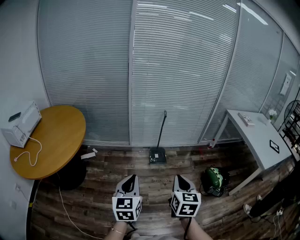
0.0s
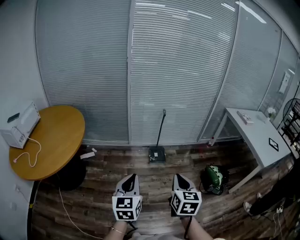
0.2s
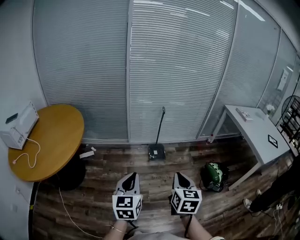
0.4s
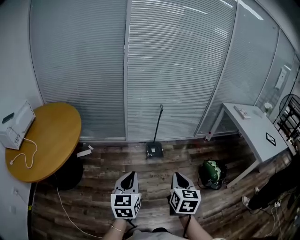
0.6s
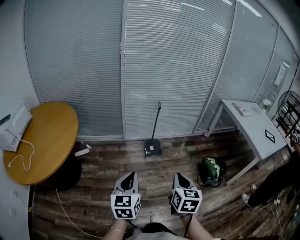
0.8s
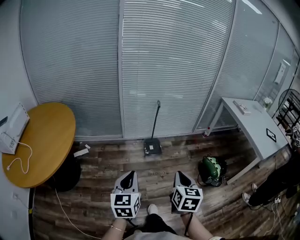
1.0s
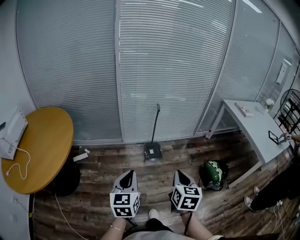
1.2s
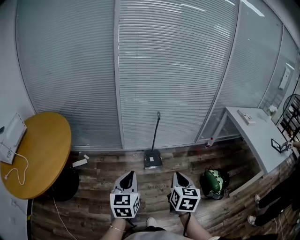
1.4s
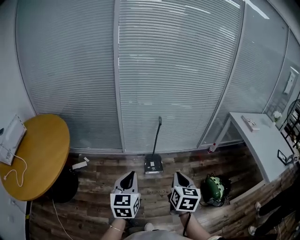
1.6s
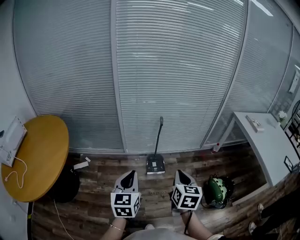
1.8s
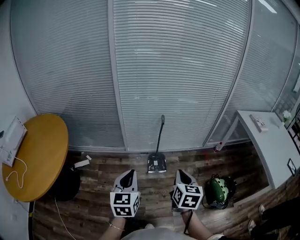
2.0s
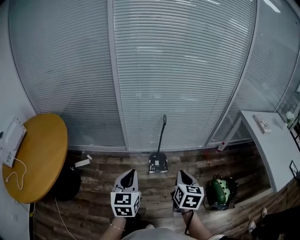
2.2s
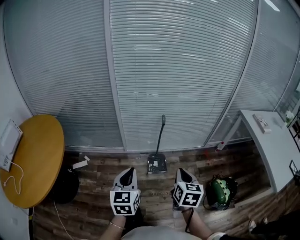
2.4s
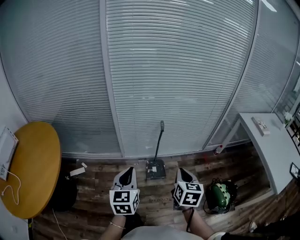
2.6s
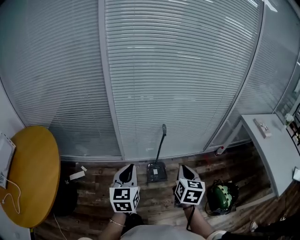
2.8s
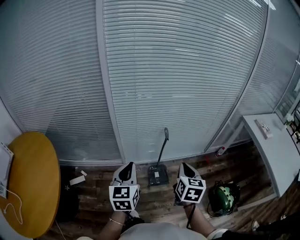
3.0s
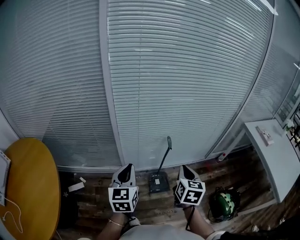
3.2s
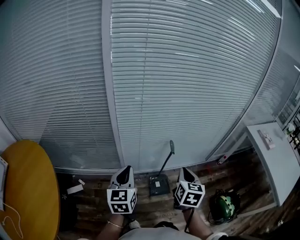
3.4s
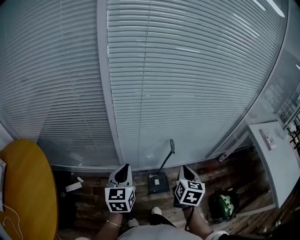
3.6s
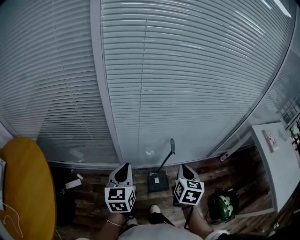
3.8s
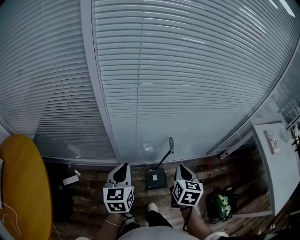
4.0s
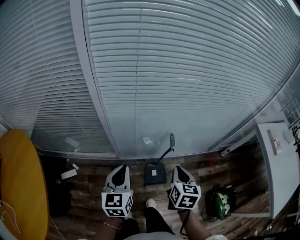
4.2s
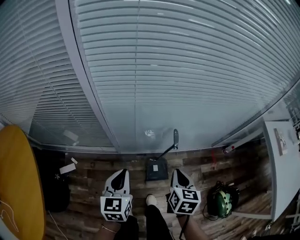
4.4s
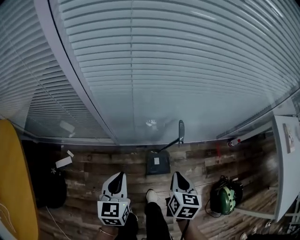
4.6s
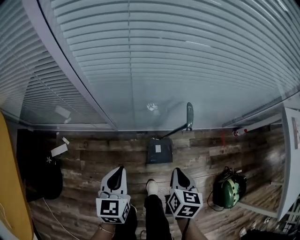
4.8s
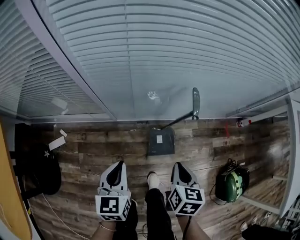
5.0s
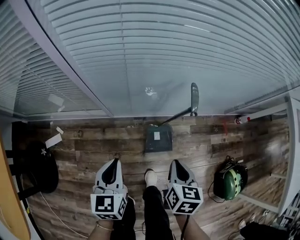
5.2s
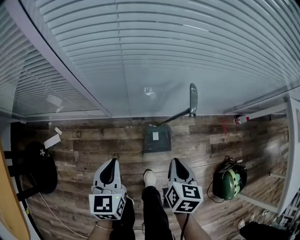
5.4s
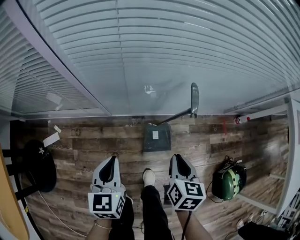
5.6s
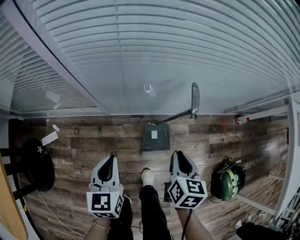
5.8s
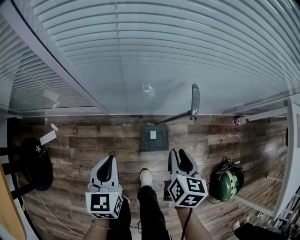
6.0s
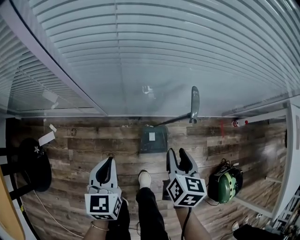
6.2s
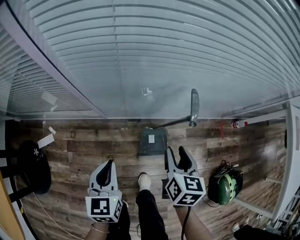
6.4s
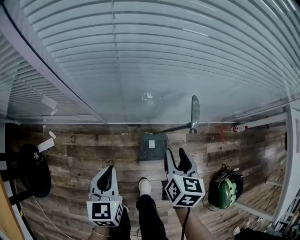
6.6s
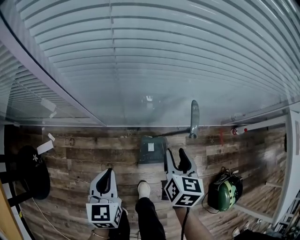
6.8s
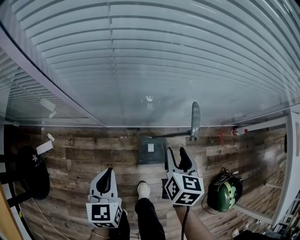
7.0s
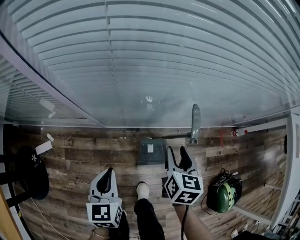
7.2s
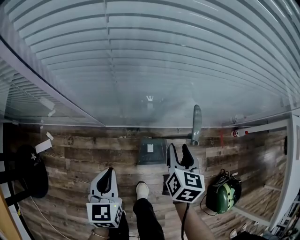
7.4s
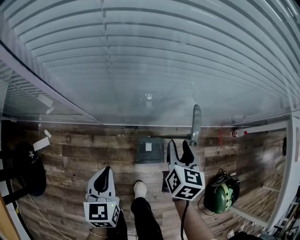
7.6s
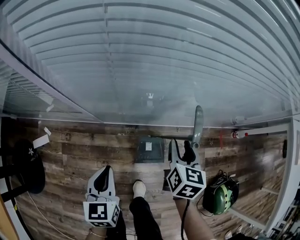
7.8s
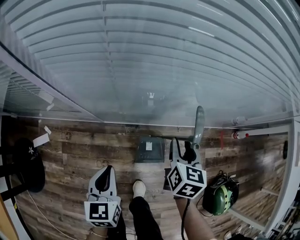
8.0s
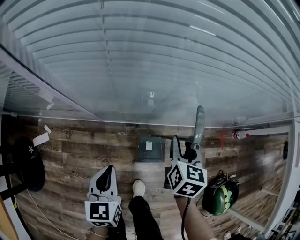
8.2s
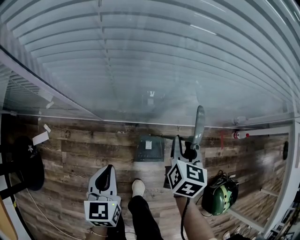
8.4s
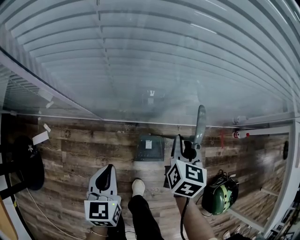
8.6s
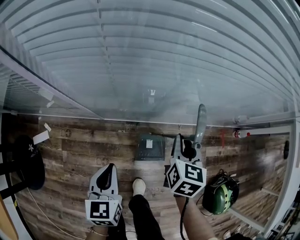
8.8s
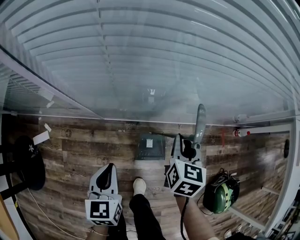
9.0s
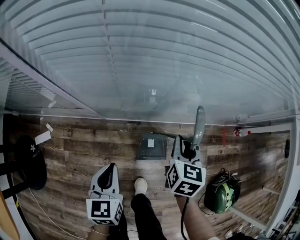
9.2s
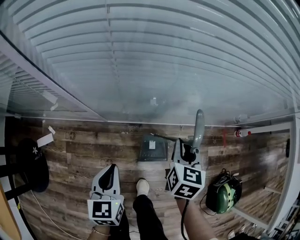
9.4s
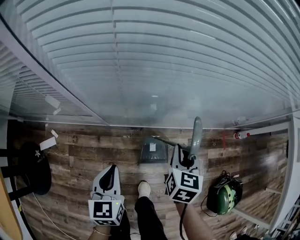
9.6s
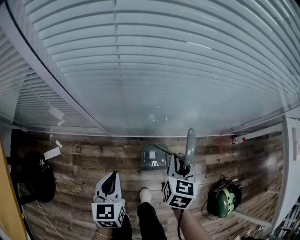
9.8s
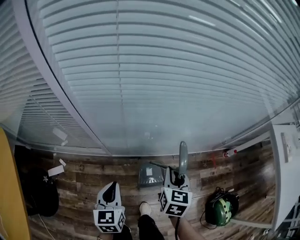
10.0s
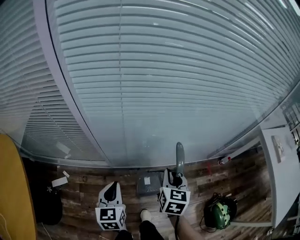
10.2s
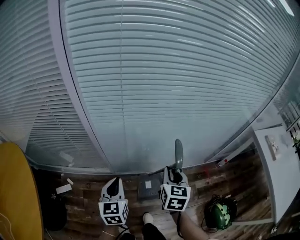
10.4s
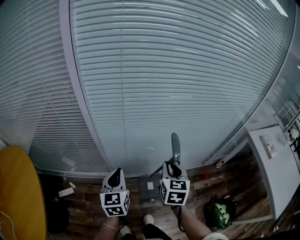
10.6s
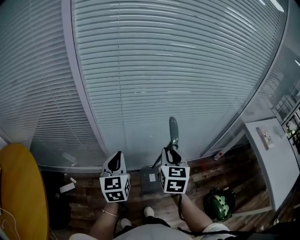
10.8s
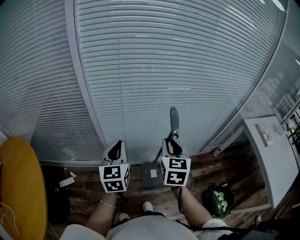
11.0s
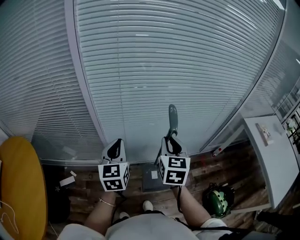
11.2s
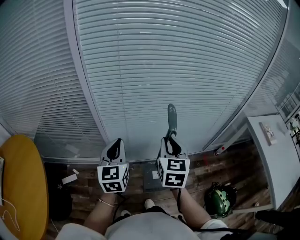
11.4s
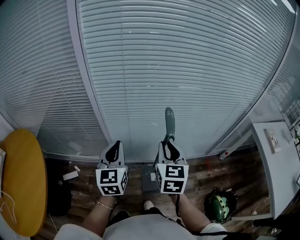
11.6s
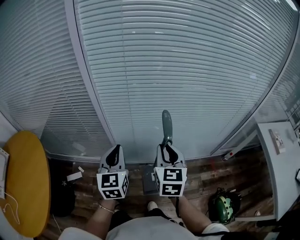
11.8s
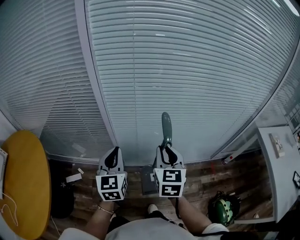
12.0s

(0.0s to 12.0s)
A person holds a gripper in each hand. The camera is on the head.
0.0s - 1.6s: Both grippers travel together forward, approximately 20 cm.
1.6s - 3.0s: The two grippers go roughly 25 cm forward.
3.0s - 4.4s: Both grippers move forward and downward, roughly 20 cm.
4.4s - 6.0s: The grippers both shift downward by approximately 20 cm. The right gripper opens its fingers.
6.0s - 7.6s: The right gripper is displaced forward by some 10 cm.
7.6s - 9.0s: The right gripper closes up.
9.0s - 10.4s: The two grippers go roughly 25 cm upward.
10.4s - 12.0s: The left gripper is displaced upward by about 15 cm. Meanwhile the right gripper is displaced upward and to the left by some 15 cm.

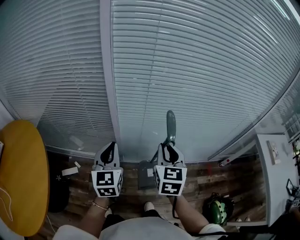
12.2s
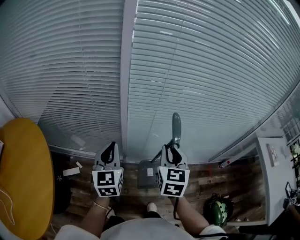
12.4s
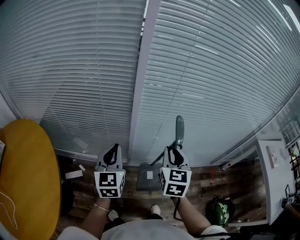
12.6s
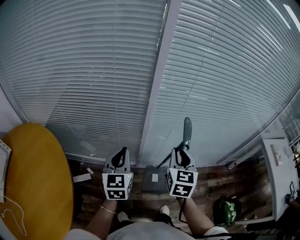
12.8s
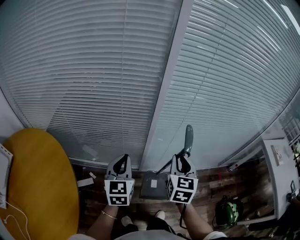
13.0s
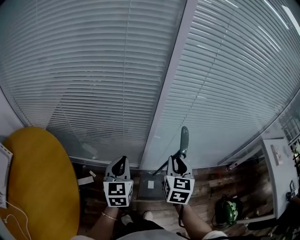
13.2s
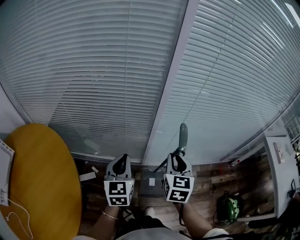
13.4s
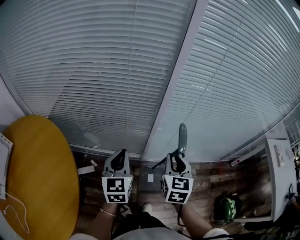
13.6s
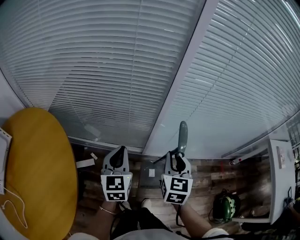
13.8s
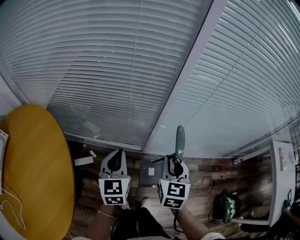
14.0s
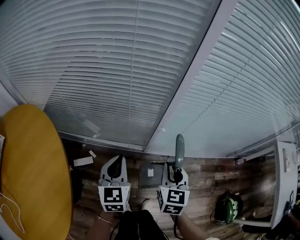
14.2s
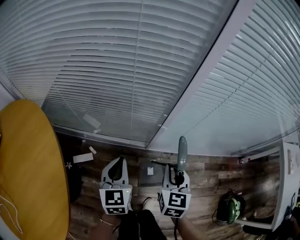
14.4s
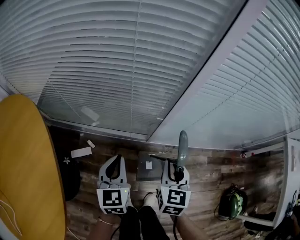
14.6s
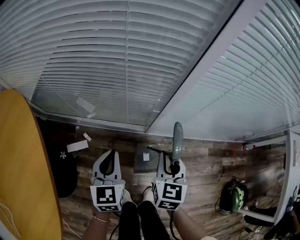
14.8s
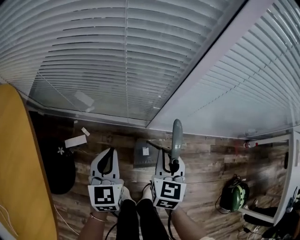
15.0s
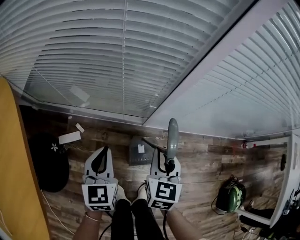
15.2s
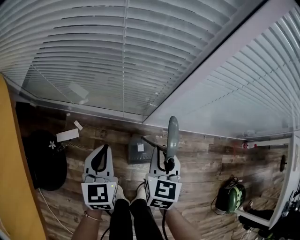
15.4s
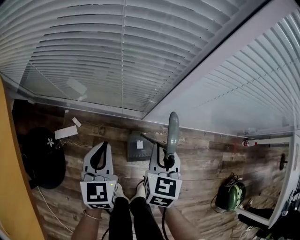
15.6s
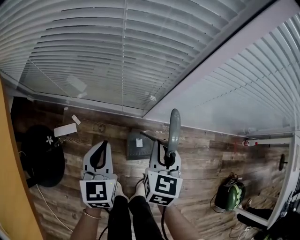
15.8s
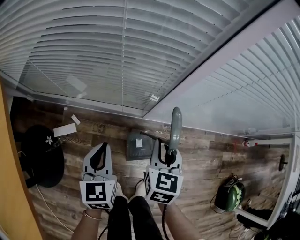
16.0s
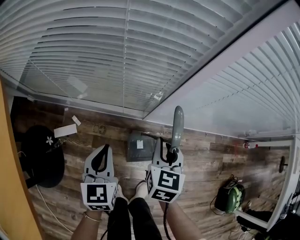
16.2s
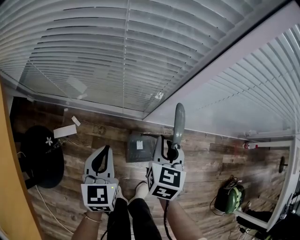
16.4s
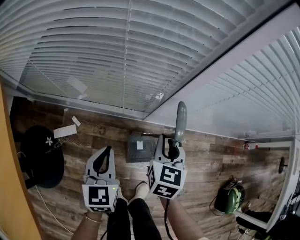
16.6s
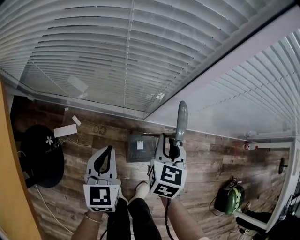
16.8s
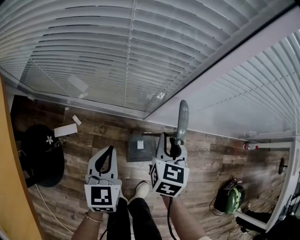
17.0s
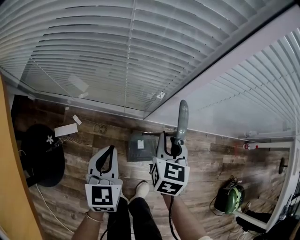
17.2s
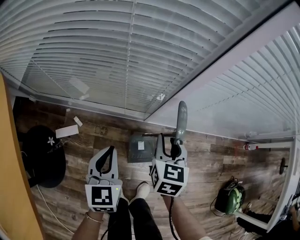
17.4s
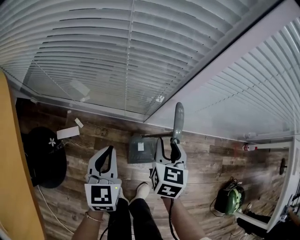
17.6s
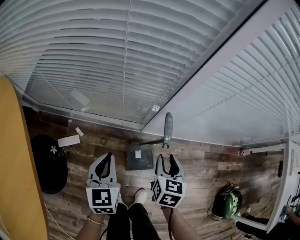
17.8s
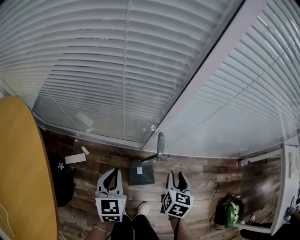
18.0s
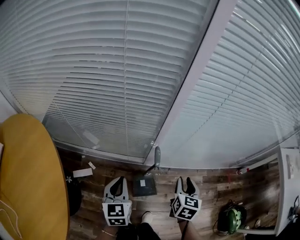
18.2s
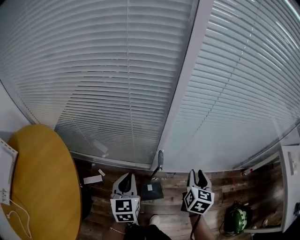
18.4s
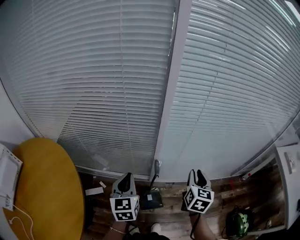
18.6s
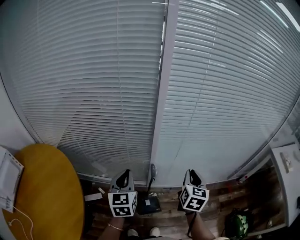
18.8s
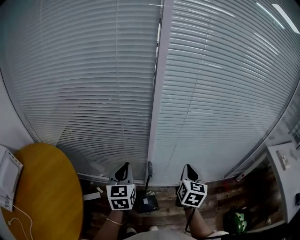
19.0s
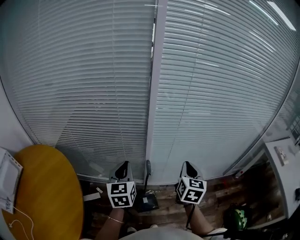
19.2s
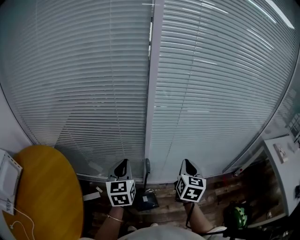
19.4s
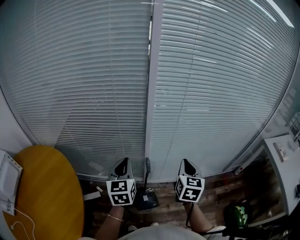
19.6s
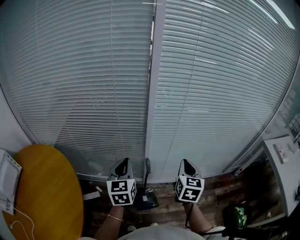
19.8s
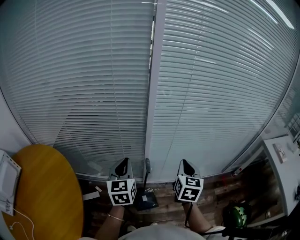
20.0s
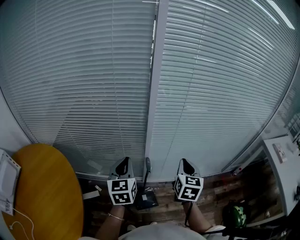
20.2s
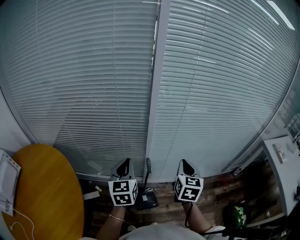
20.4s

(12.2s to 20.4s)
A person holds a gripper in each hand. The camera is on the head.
12.2s - 13.8s: The two grippers go some 15 cm to the left.
13.8s - 15.4s: The grippers both shift downward by about 25 cm.
15.4s - 17.2s: The right gripper changes place by roughly 5 cm.
17.2s - 18.8s: The left gripper is displaced upward by some 35 cm; the right gripper travels upward and to the right by approximately 35 cm, and rotates roughly 20 degrees.
18.8s - 20.4s: The grippers make only small movements.

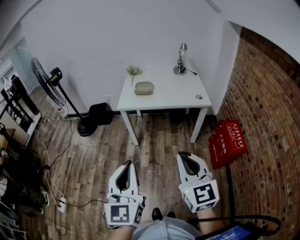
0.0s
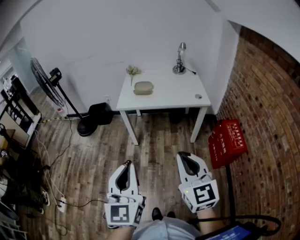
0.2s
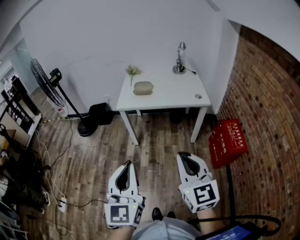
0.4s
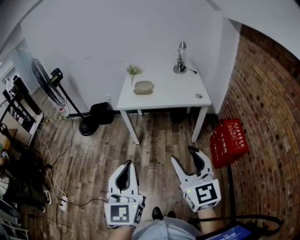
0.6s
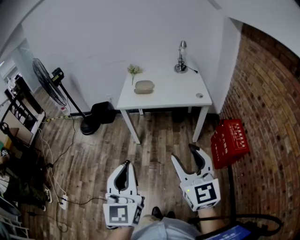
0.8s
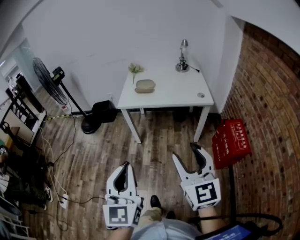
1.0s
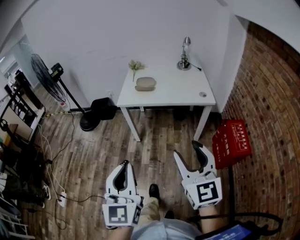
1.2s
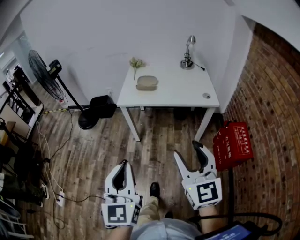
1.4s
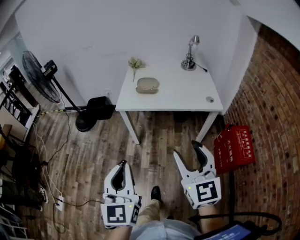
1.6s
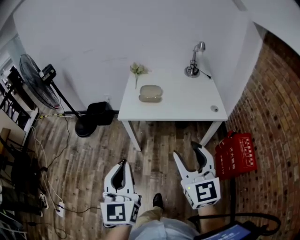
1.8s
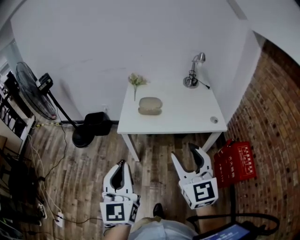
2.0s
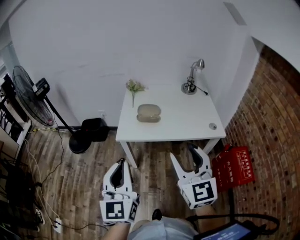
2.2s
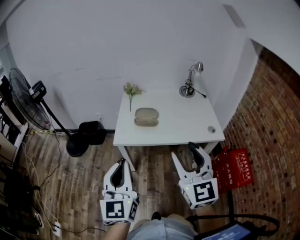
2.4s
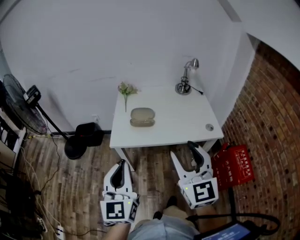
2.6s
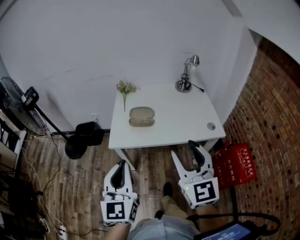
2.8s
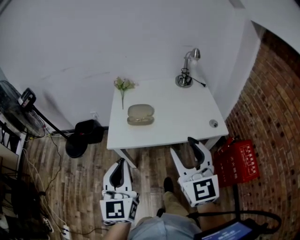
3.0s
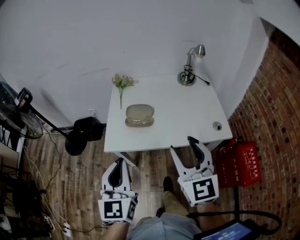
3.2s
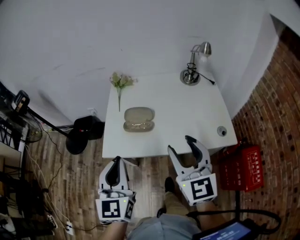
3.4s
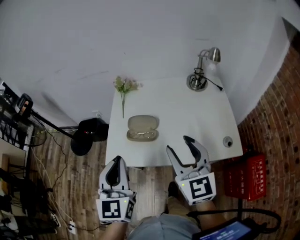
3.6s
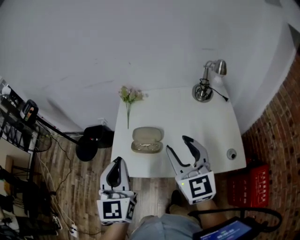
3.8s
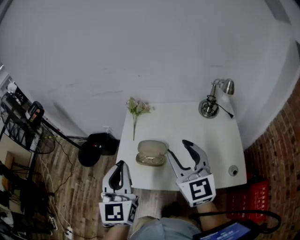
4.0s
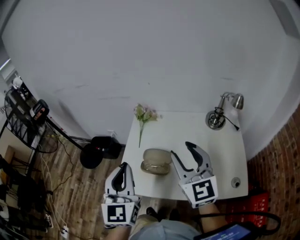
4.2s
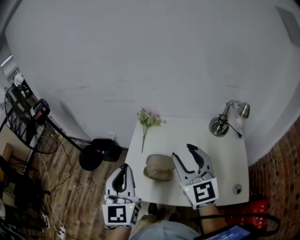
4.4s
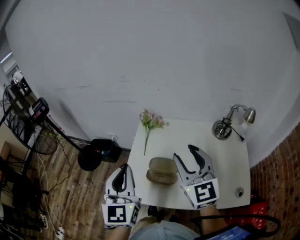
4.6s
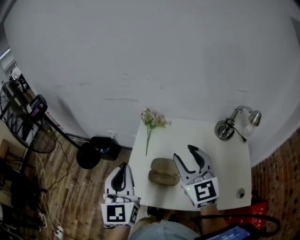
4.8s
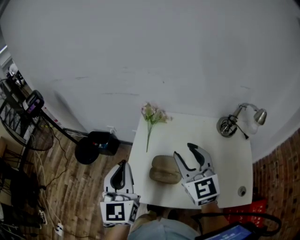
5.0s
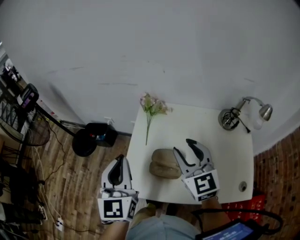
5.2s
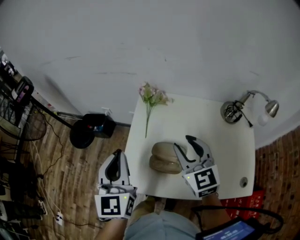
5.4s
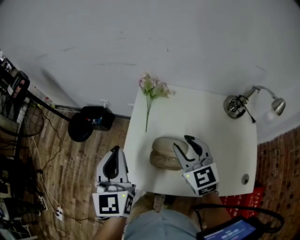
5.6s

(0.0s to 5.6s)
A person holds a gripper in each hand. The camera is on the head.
0.0s - 1.4s: The two grippers go roughly 5 cm forward. The right gripper opens its fingers.
1.4s - 2.8s: The grippers both shift forward by approximately 30 cm.
2.8s - 4.2s: The two grippers go about 30 cm forward.
4.2s - 5.6s: The left gripper shifts about 15 cm forward, to the left and downward. The right gripper travels downward, forward and to the left by about 20 cm, and changes its angle by about 20 degrees.
